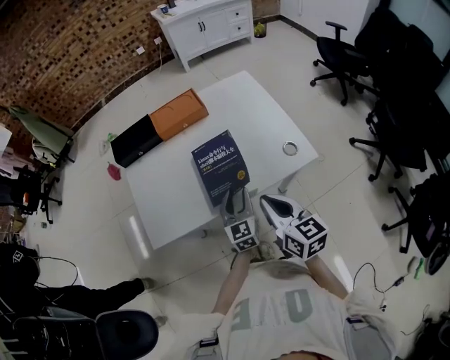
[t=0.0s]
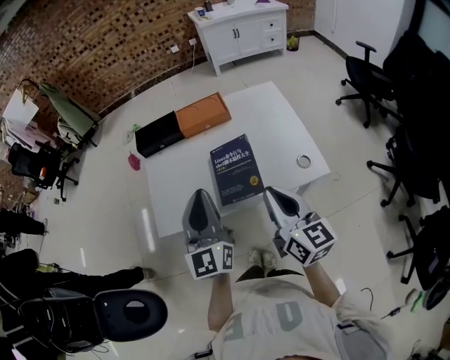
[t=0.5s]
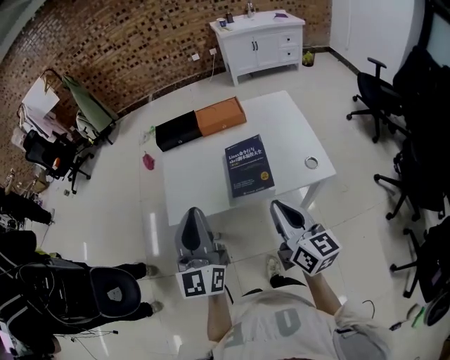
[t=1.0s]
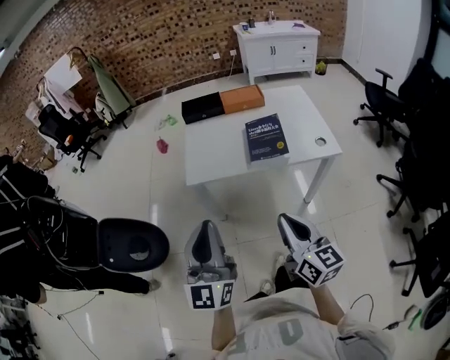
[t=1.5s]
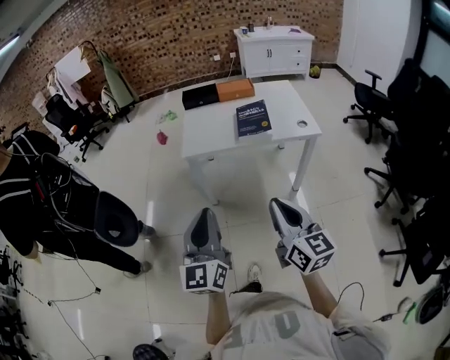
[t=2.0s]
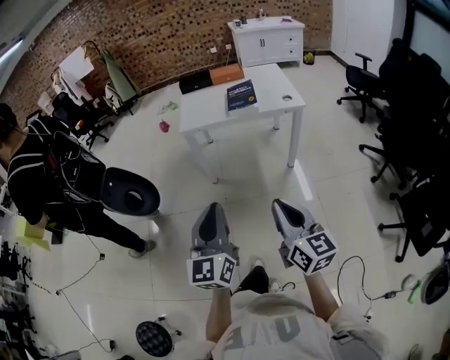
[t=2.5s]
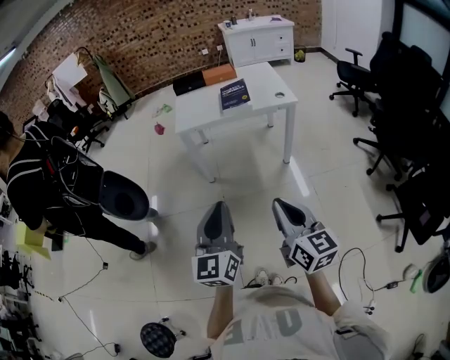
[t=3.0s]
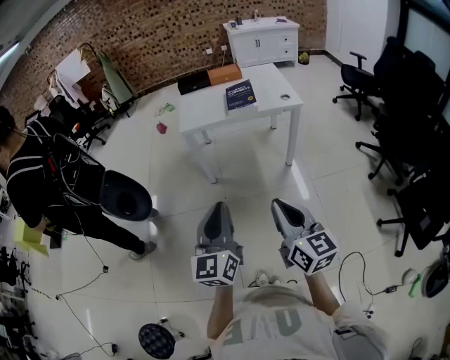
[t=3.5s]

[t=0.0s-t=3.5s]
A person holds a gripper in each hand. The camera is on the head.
t=0.0s to t=2.0s: The pair of grippers is taken backward and to the left, about 50 cm. The left gripper heads upward, covering approximately 25 cm, rotates roughly 30 degrees, and closes up.
t=2.0s to t=3.5s: The two grippers go some 20 cm backward.

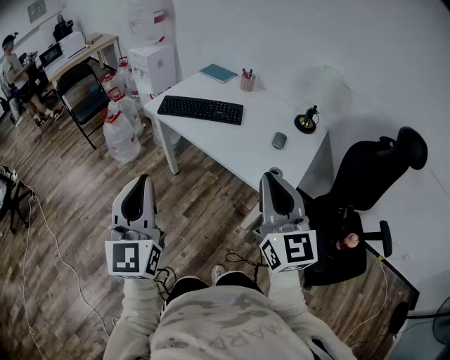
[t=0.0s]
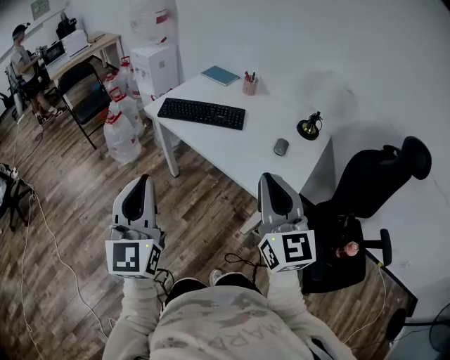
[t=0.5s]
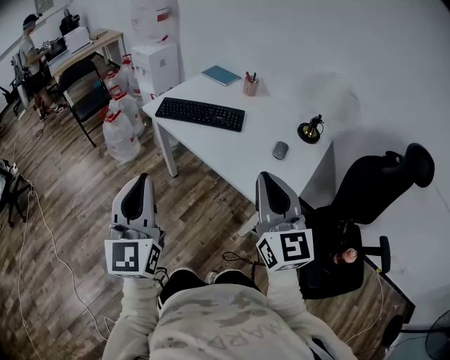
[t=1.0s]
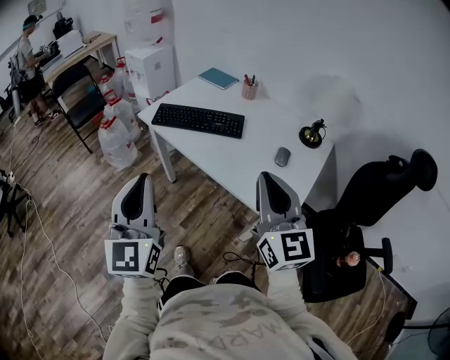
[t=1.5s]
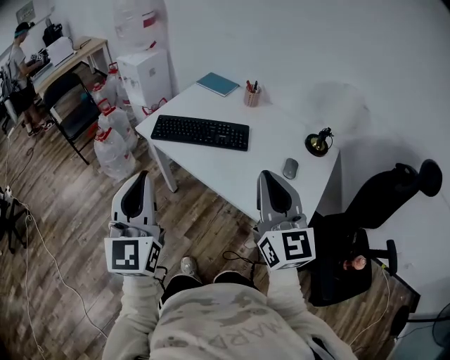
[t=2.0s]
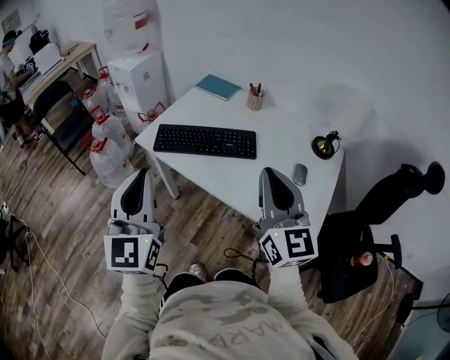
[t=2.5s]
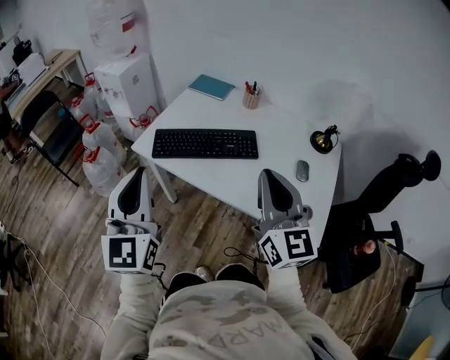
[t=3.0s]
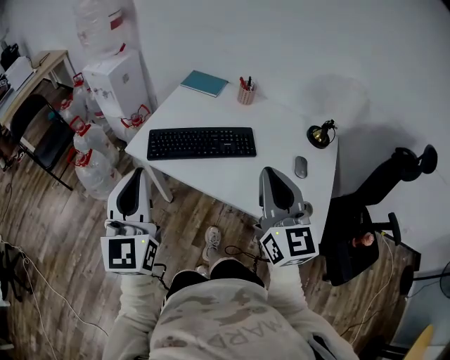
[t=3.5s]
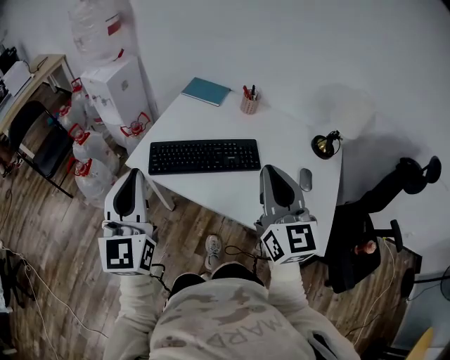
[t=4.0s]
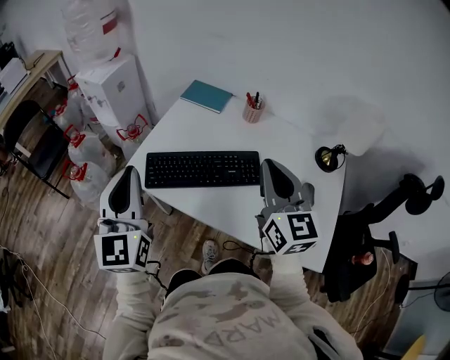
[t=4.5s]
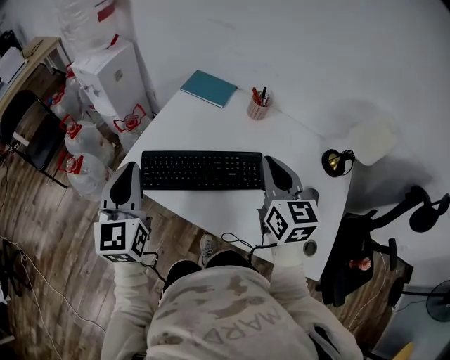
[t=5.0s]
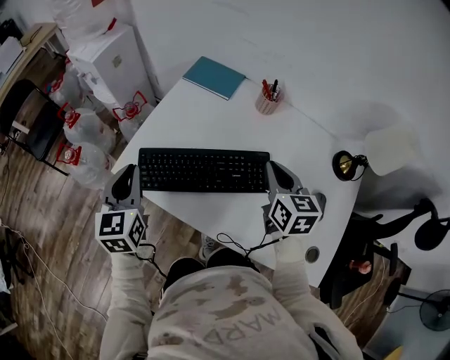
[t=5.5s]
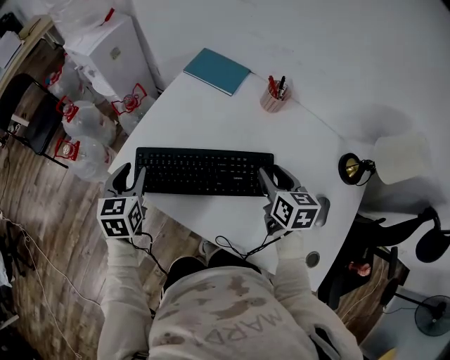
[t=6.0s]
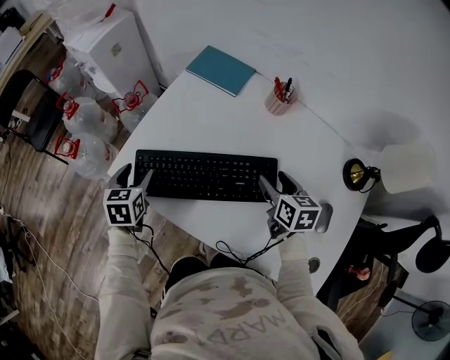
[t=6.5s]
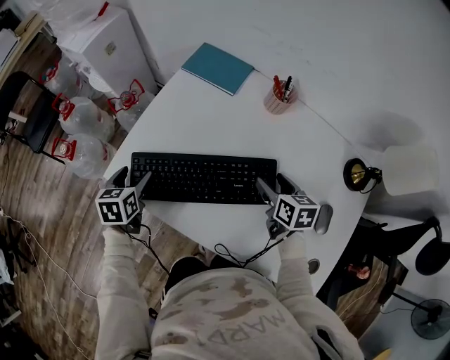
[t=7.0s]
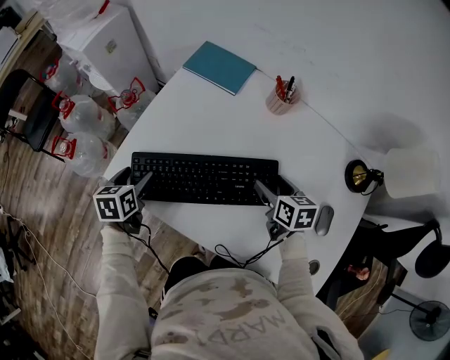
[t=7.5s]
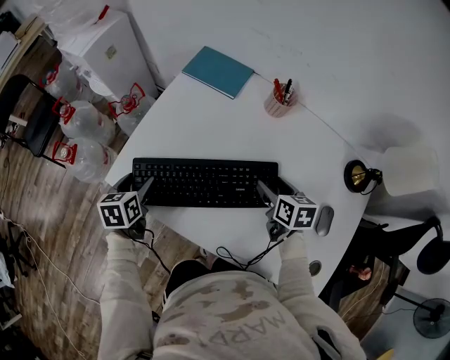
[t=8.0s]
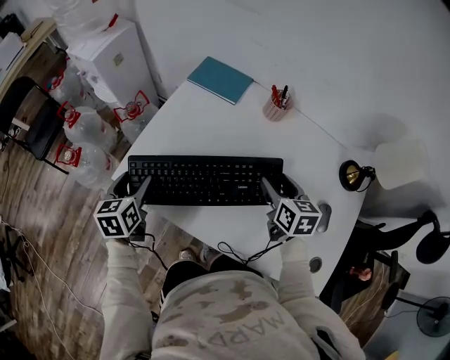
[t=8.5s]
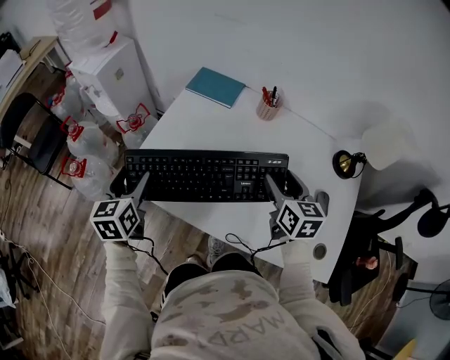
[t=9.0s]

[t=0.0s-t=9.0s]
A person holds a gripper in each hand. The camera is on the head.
t=0.0s to t=2.0s: The grippers both shift forward by approximately 20 cm.
t=2.0s to t=4.5s: The right gripper heads forward, covering roughly 25 cm, while the left gripper goes some 30 cm forward and to the left.
t=4.5s to t=7.0s: The grippers both shift downward and forward by some 35 cm. The right gripper tips its fingers downward by approximately 40 degrees, and opens up, while the left gripper tilts its fingers approximately 50 degrees downward, and opens its fingers.
t=7.0s to t=9.0s: The grippers both shift upward by approximately 15 cm. The left gripper swivels approximately 20 degrees. The right gripper changes its angle by about 20 degrees.

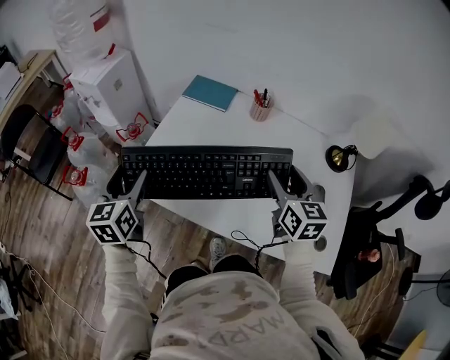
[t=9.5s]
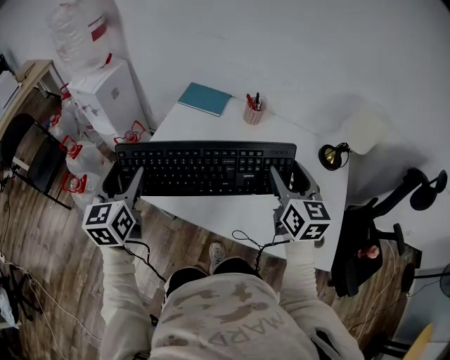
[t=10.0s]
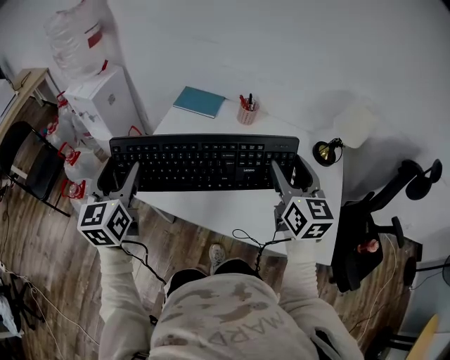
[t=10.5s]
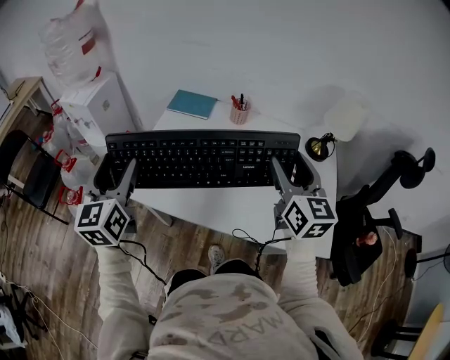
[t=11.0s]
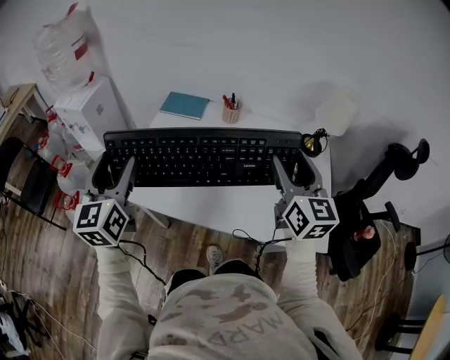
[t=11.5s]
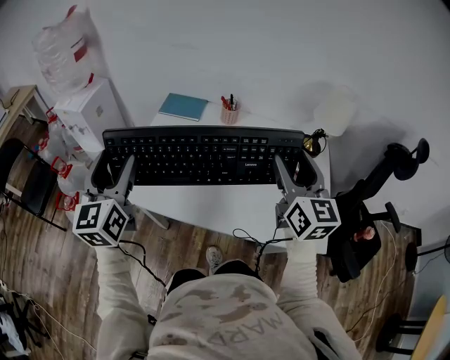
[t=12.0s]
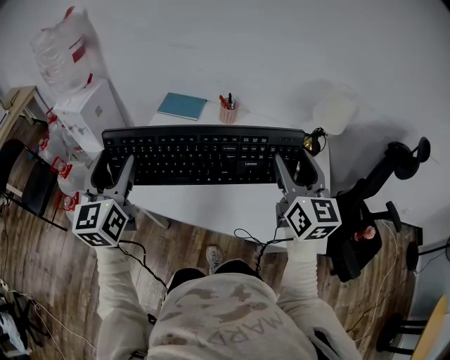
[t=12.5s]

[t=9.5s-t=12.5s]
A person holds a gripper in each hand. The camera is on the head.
t=9.5s to t=11.0s: The left gripper shifts about 10 cm upward. The right gripper moves upward and backward, roughly 15 cm.
t=11.0s to t=12.5s: There are only small adjustments of the grippers.

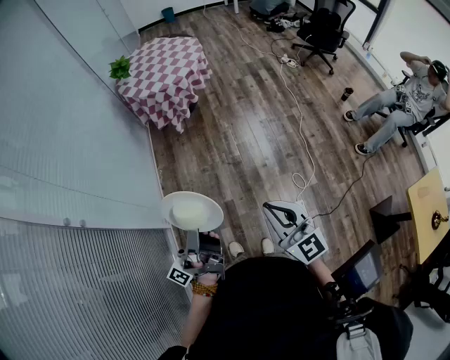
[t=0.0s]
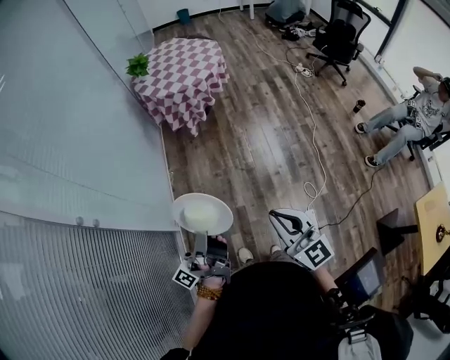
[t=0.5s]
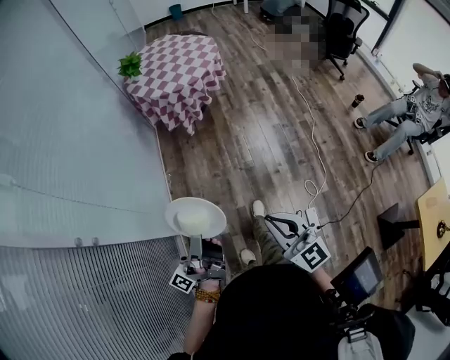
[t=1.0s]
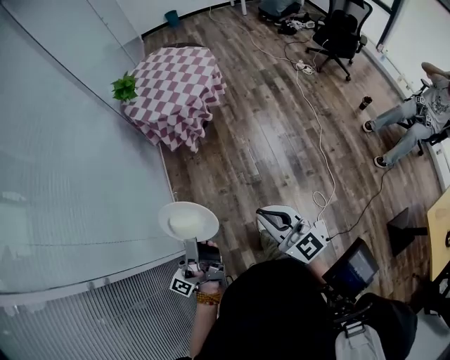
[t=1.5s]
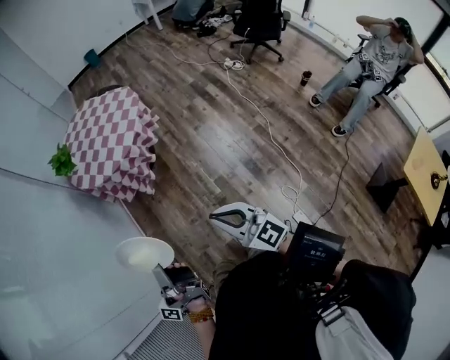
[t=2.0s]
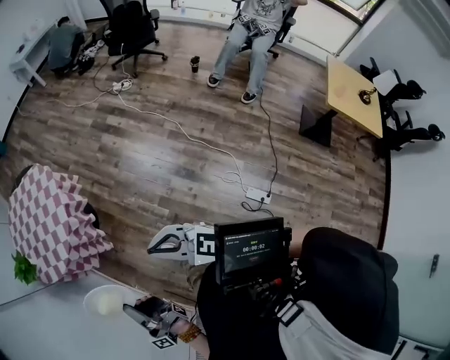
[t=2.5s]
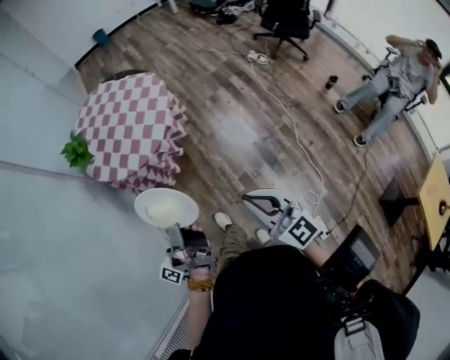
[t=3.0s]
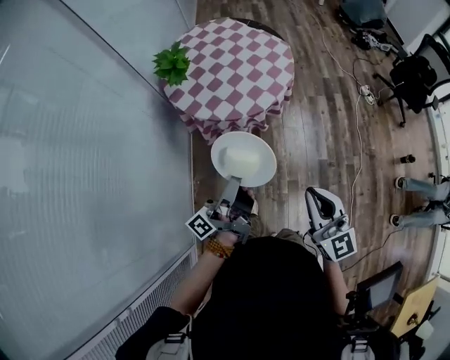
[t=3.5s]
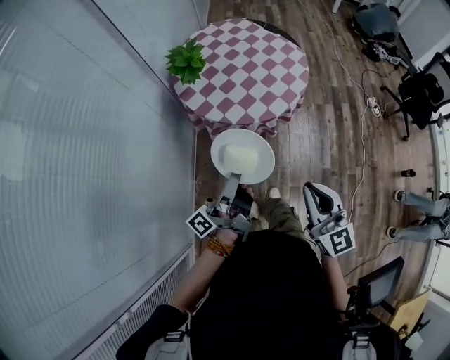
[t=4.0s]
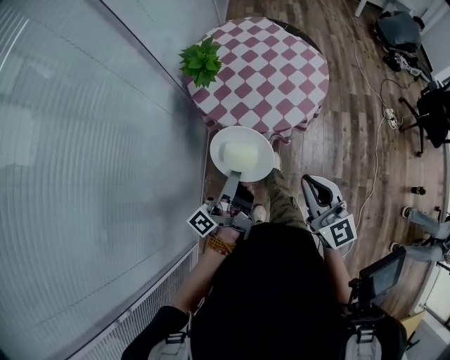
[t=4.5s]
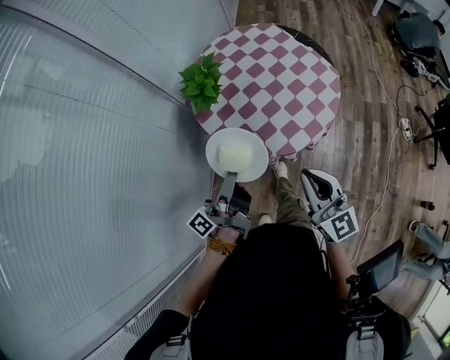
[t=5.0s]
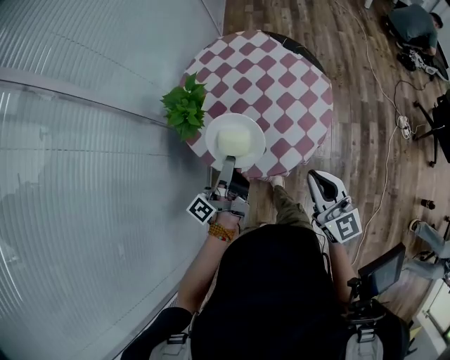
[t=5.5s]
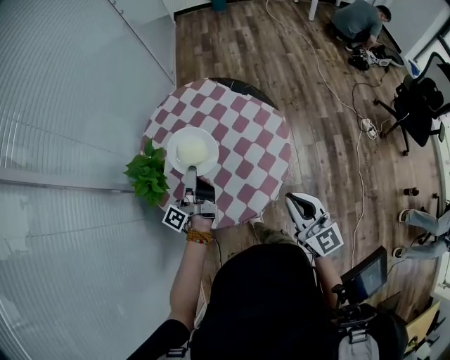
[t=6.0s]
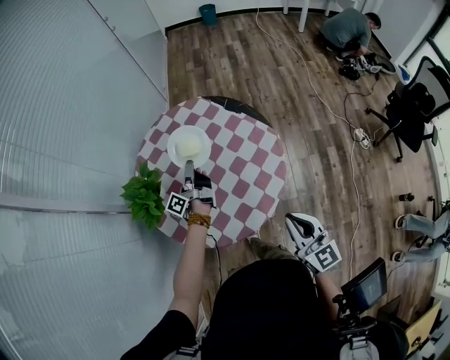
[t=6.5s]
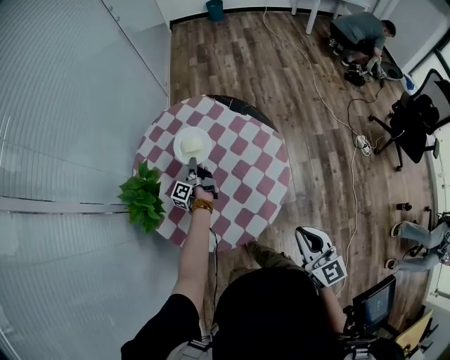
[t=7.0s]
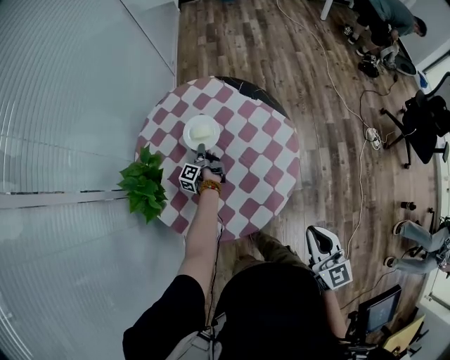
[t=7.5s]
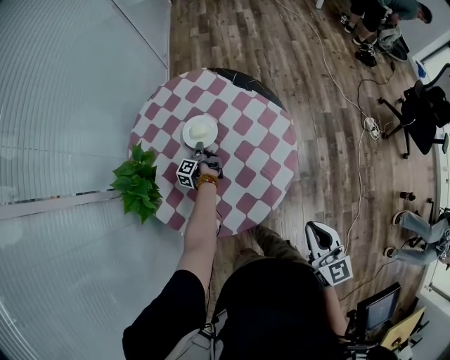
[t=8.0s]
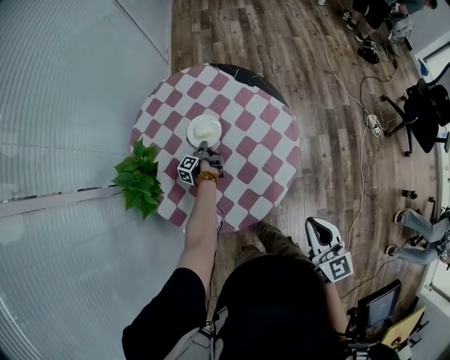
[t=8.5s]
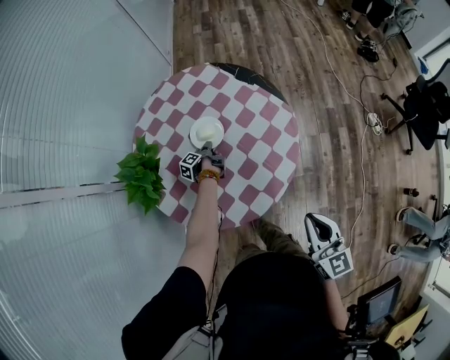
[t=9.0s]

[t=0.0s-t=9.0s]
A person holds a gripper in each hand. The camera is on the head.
t=0.0s to t=2.0s: The right gripper shifts by roughly 35 cm.
t=2.0s to t=4.5s: The right gripper shifts by roughly 50 cm.
t=4.5s to t=7.0s: The right gripper shifts by approximately 35 cm, and rotates about 20 degrees.

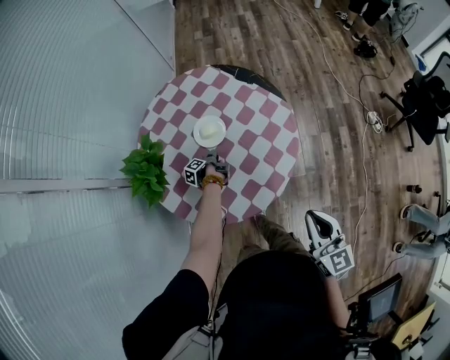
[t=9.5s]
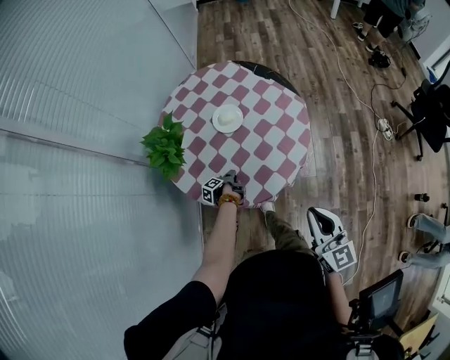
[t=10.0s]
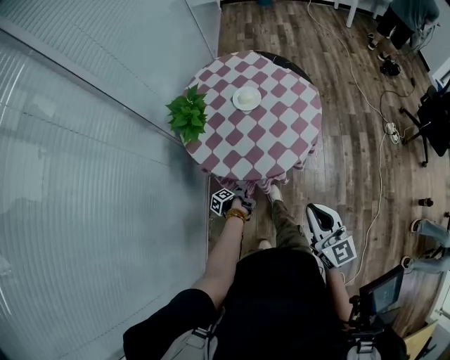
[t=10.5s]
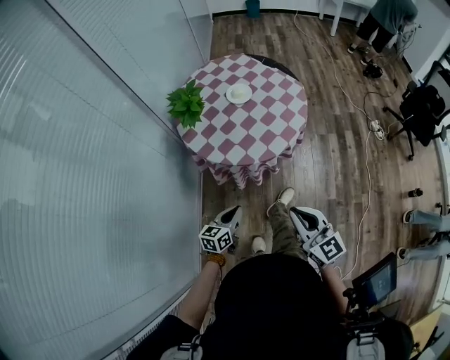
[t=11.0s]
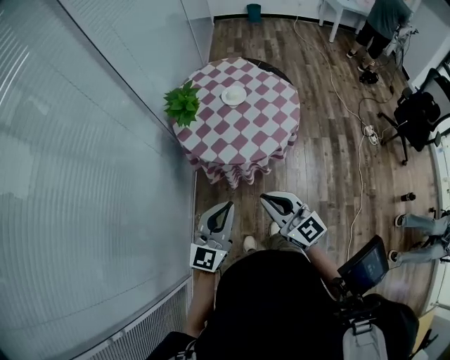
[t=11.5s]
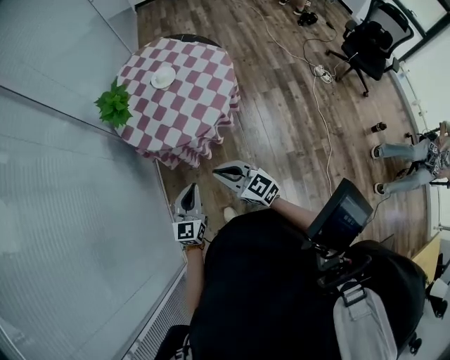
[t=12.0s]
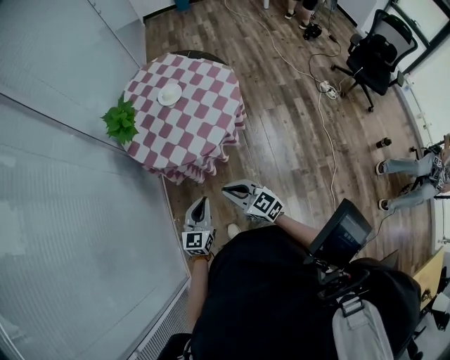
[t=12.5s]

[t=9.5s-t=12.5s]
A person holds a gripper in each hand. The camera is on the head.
t=9.5s to t=11.0s: The right gripper changes place by approximately 35 cm.
t=11.0s to t=12.5s: The right gripper goes roughly 10 cm downward.
